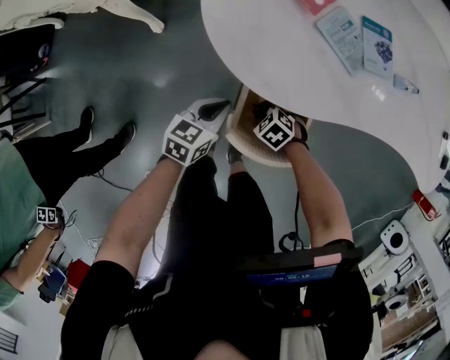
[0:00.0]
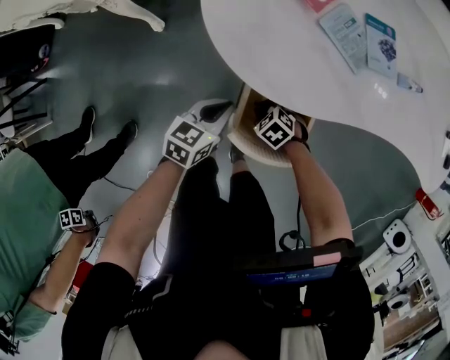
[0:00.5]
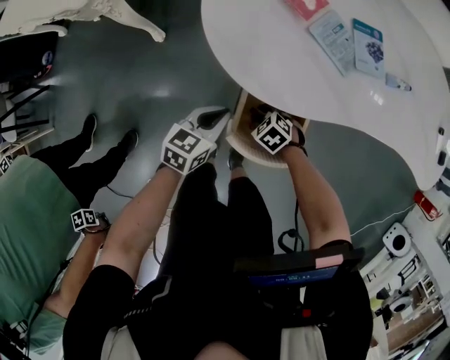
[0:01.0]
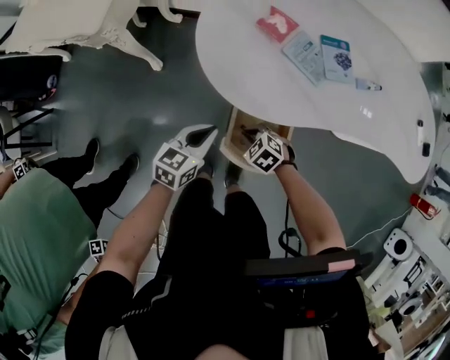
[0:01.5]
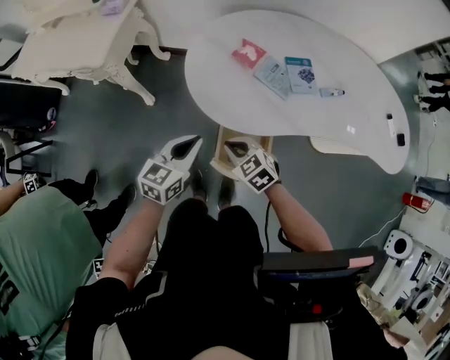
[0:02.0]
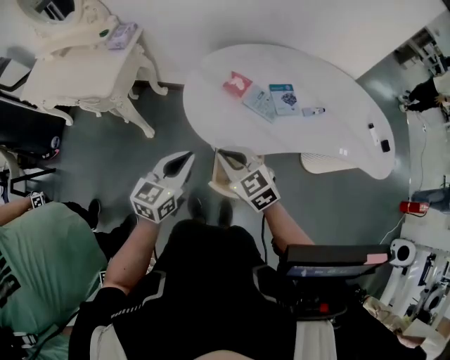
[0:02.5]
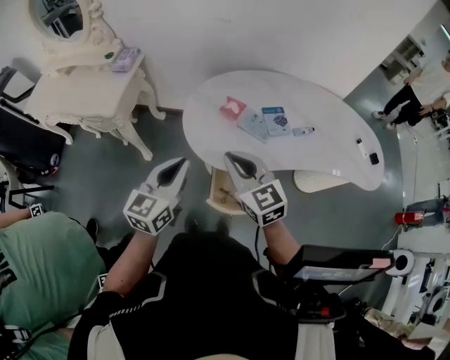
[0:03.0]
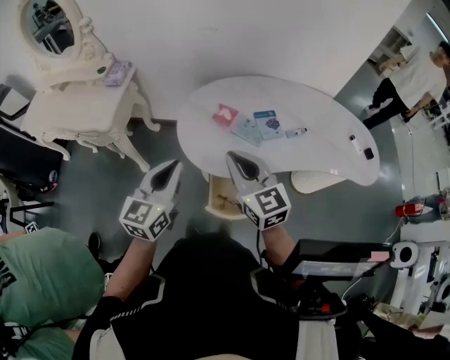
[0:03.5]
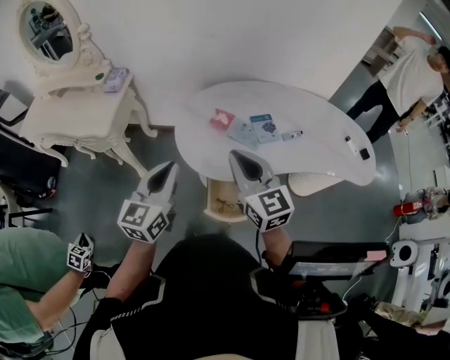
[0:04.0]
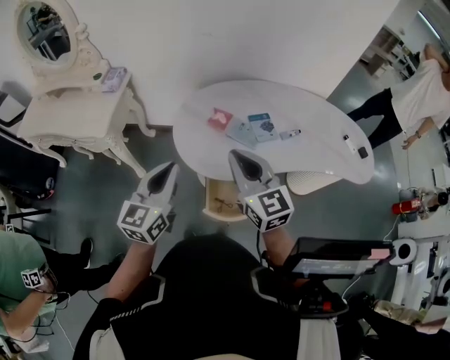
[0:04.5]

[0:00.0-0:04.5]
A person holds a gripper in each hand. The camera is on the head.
0:00.0 to 0:02.0: The grippers both shift upward by approximately 20 cm. The right gripper swivels some 30 degrees, and opens, then closes once more.
0:02.0 to 0:04.5: The left gripper travels upward by about 20 cm, and rotates roughly 20 degrees. The right gripper is displaced upward by some 30 cm, and angles its fingers upward, by some 40 degrees.

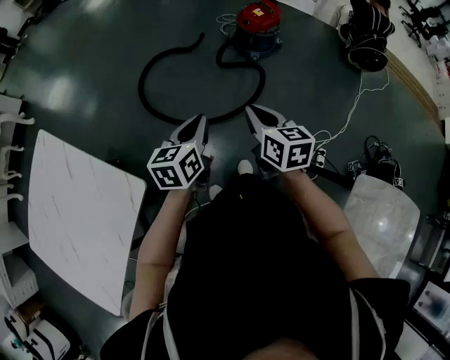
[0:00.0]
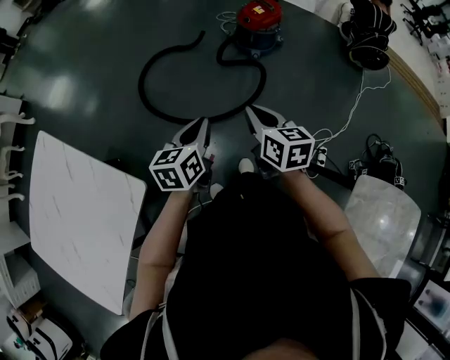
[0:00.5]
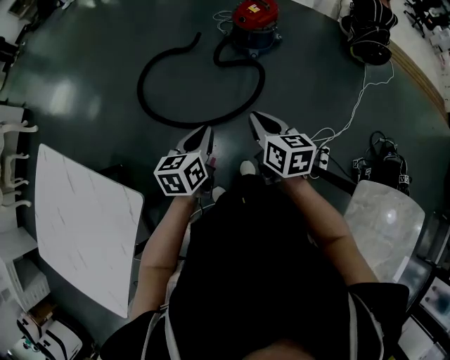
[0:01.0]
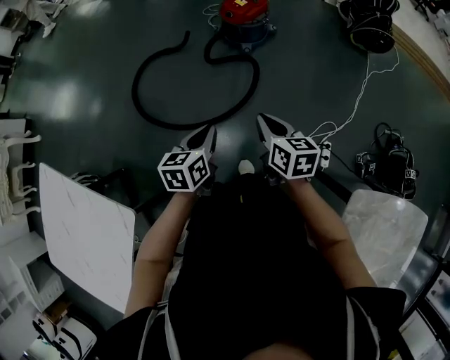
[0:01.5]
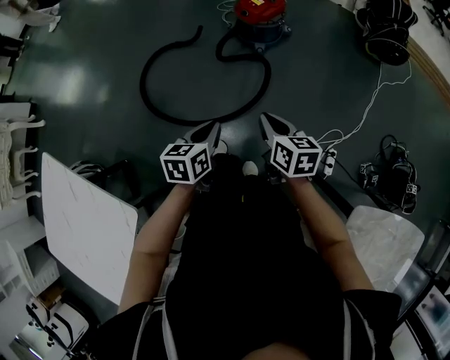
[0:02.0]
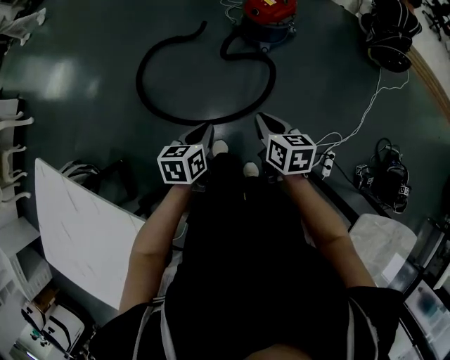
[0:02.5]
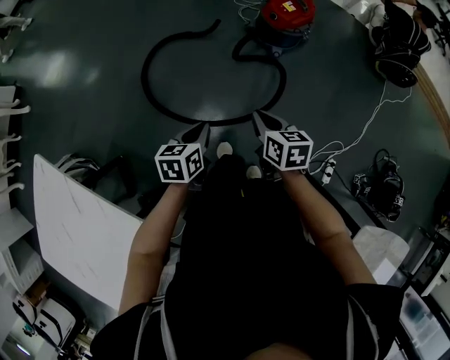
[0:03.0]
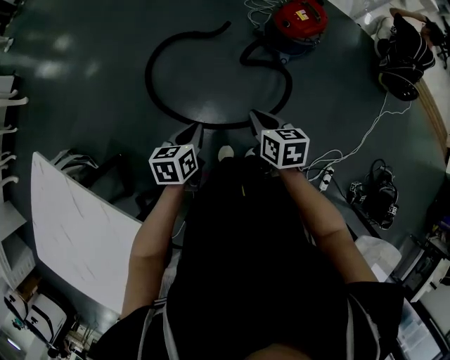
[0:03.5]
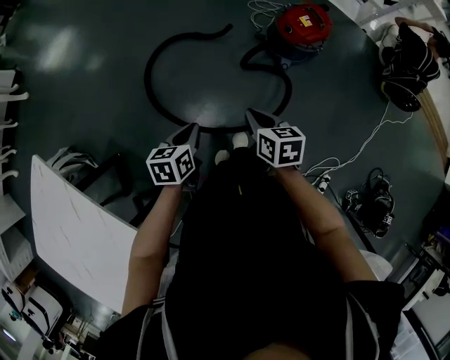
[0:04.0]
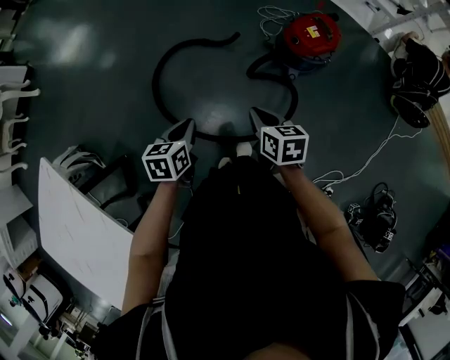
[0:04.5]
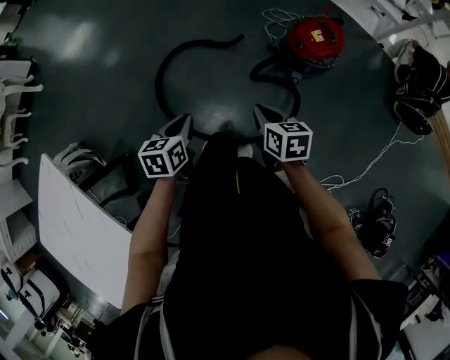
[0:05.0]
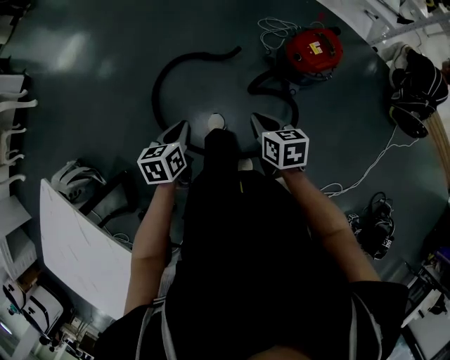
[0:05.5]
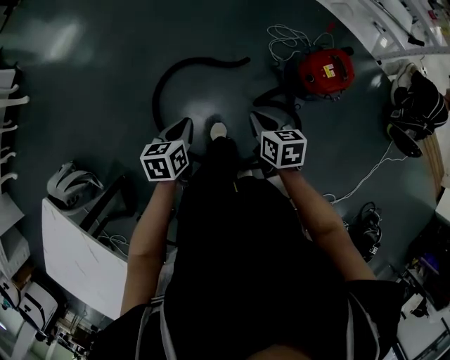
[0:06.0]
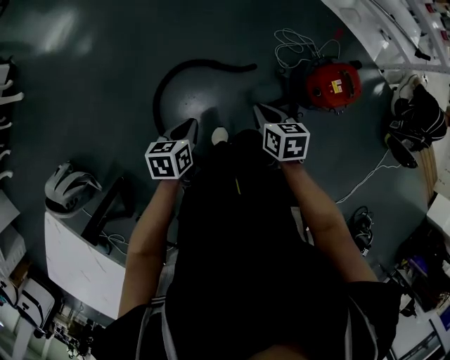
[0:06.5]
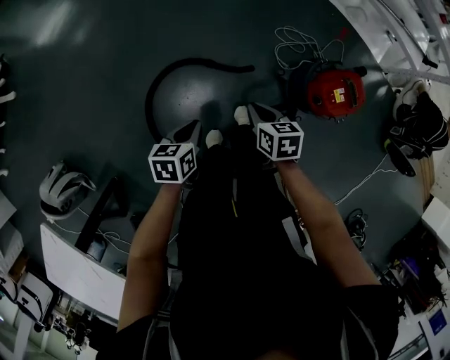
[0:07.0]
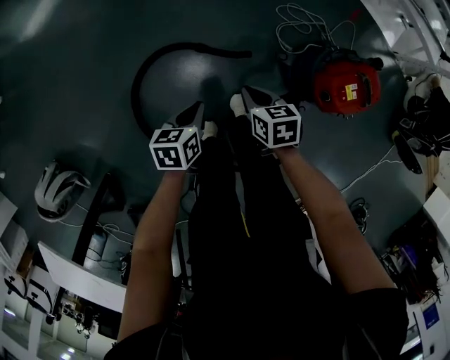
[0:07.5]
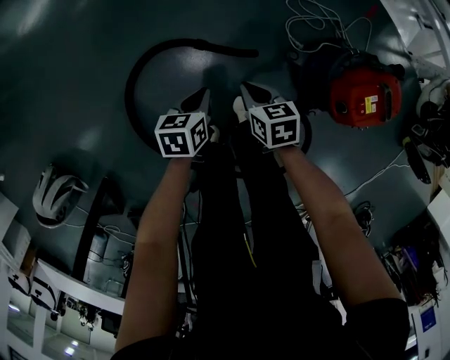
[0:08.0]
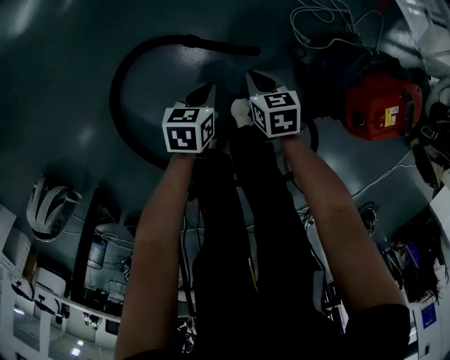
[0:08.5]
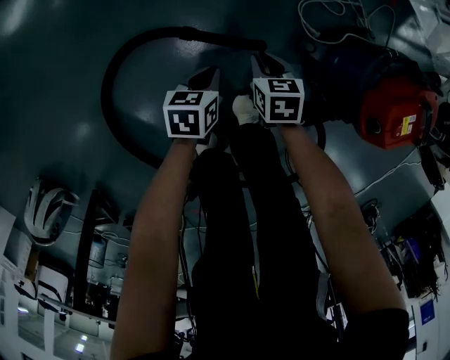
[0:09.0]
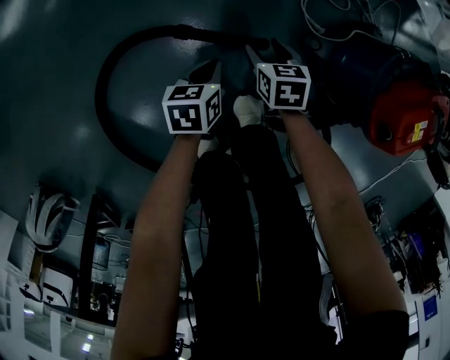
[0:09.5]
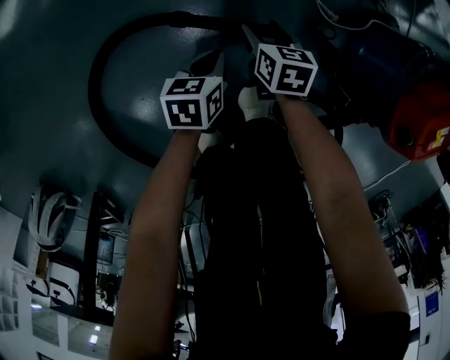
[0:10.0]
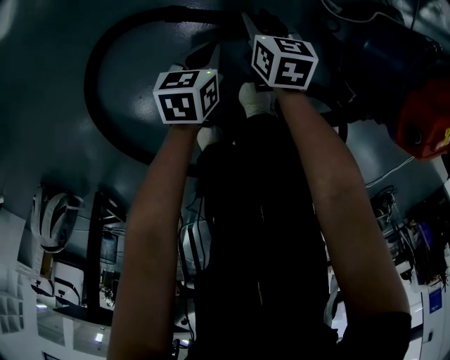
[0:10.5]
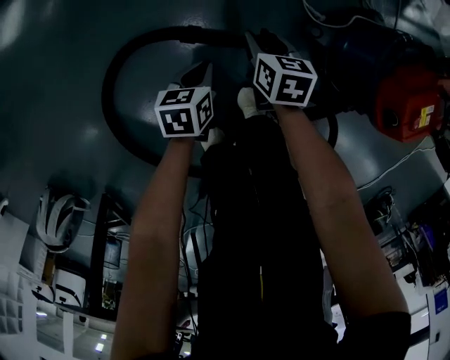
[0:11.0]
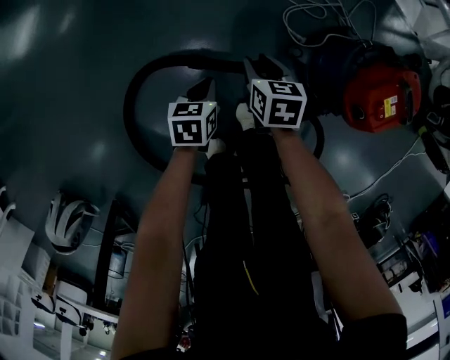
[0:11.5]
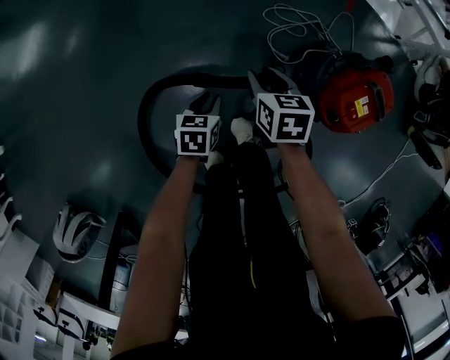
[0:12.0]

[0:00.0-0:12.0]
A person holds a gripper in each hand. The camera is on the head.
0:00.0 to 0:02.0: The grippers both shift to the right, forward and downward by roughly 15 cm.
0:02.0 to 0:04.0: The two grippers go some 25 cm to the left and forward.
0:04.0 to 0:06.0: Both grippers move forward, approximately 25 cm.
0:06.0 to 0:08.0: The two grippers go roughly 35 cm downward and forward.
0:08.0 to 0:10.0: The grippers both shift downward by about 25 cm. The right gripper opens its fingers.
0:10.0 to 0:12.0: The grippers both shift upward by about 25 cm.

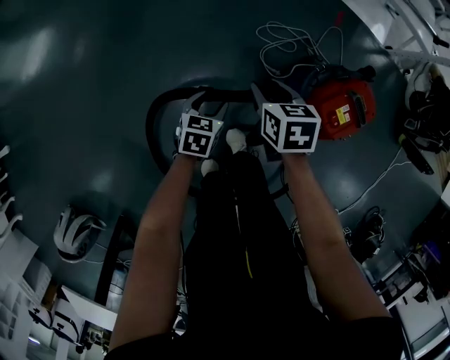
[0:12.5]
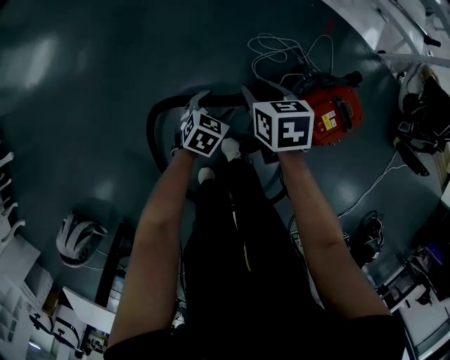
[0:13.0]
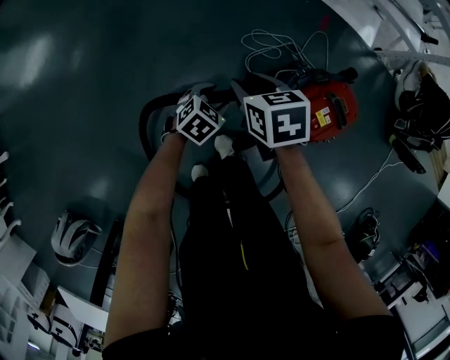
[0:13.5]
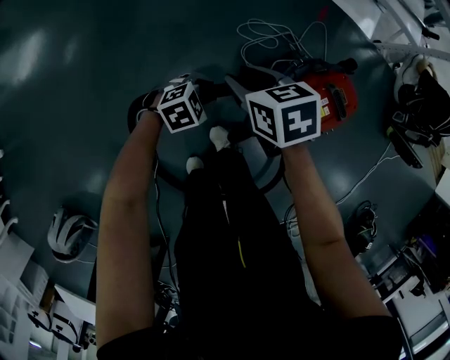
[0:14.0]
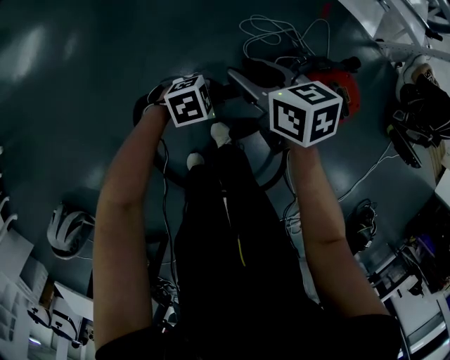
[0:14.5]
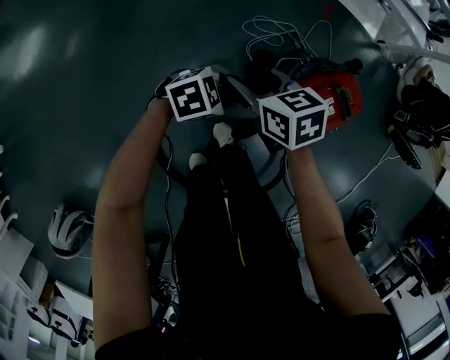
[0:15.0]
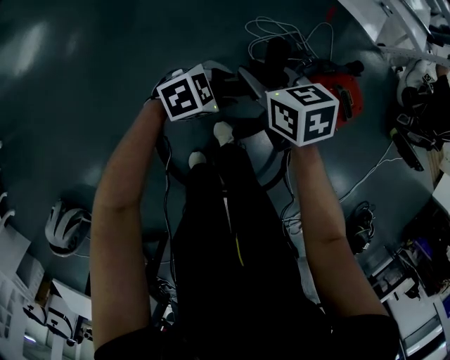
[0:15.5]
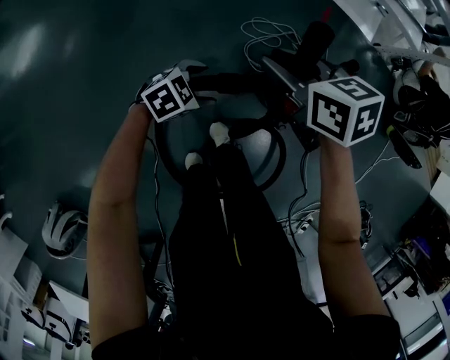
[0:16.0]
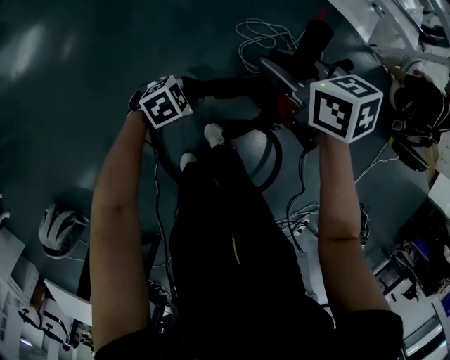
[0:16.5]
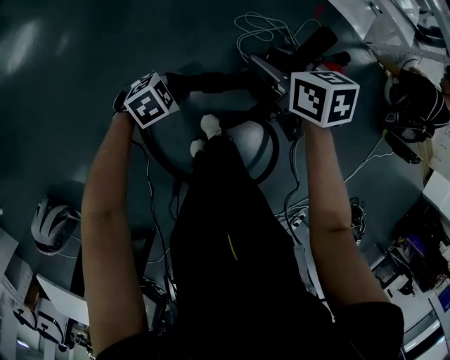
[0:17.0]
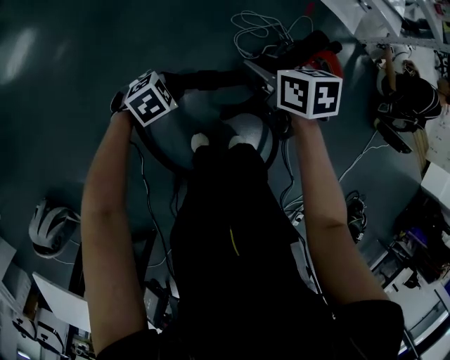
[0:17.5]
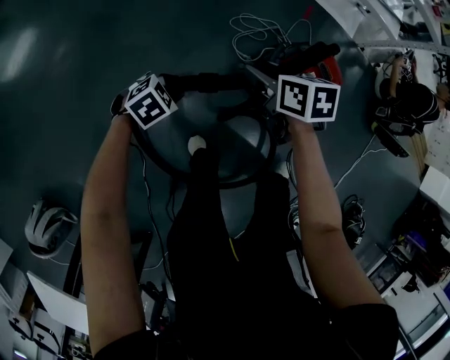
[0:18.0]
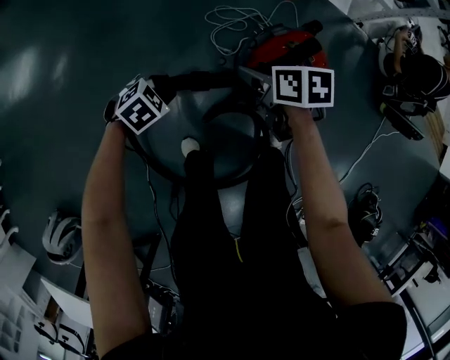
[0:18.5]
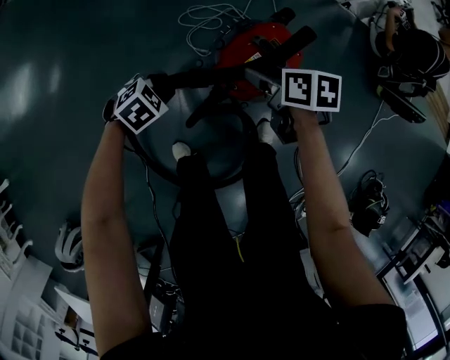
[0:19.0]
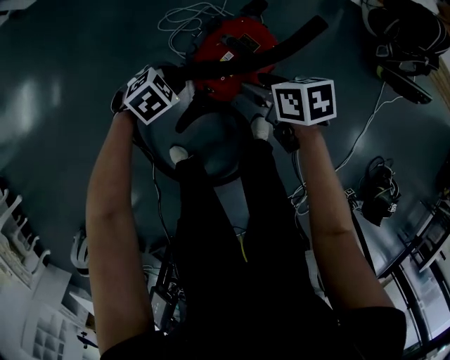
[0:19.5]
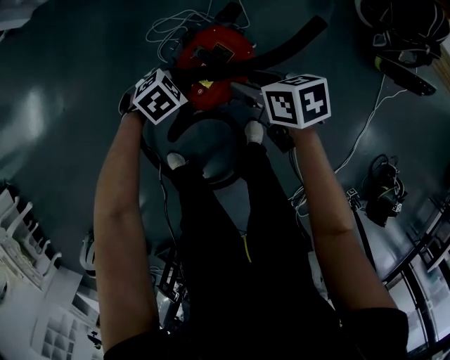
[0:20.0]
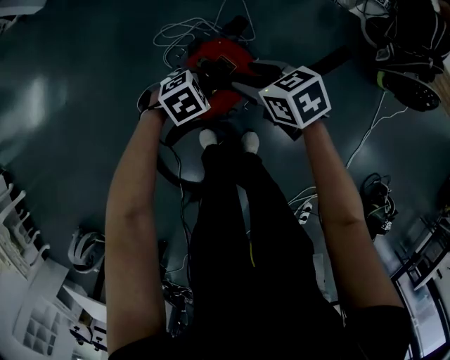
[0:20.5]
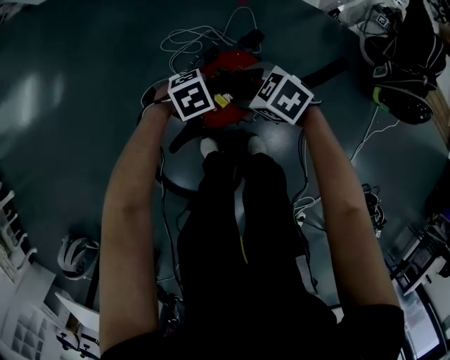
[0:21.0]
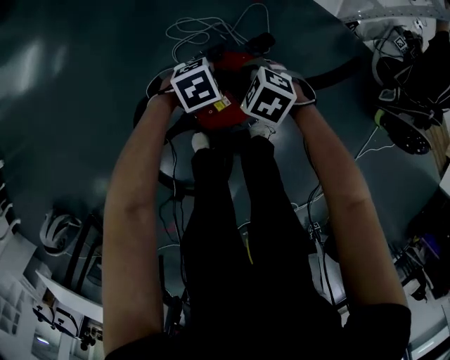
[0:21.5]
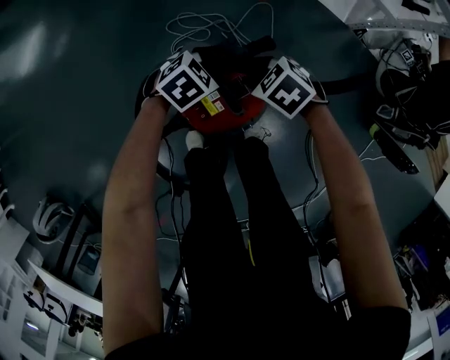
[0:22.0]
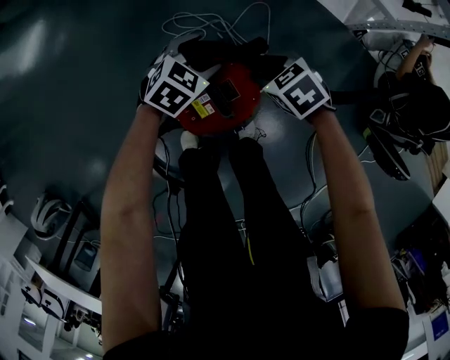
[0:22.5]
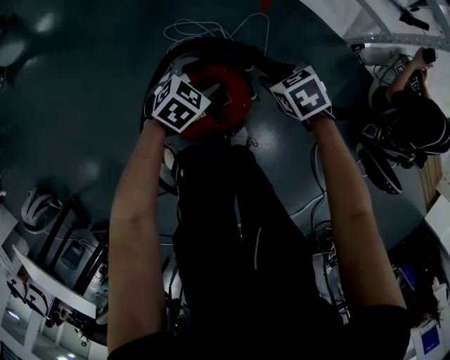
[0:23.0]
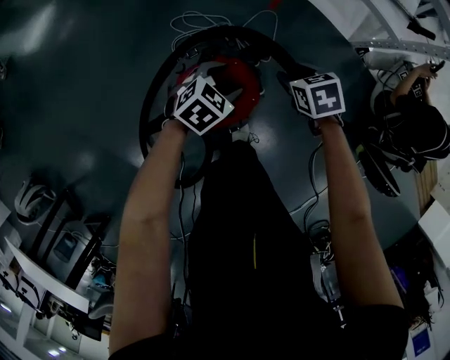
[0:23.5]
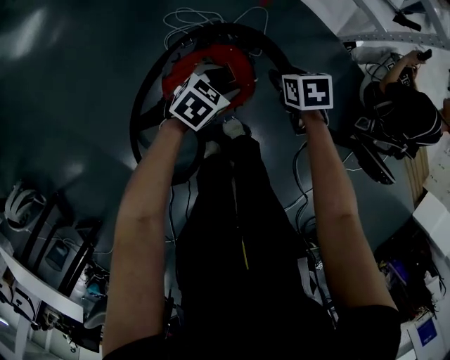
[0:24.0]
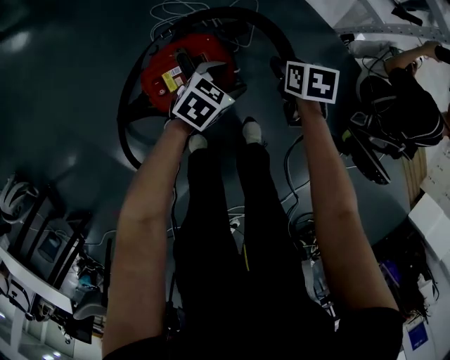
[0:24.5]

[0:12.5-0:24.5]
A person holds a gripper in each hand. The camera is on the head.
0:12.5 to 0:14.5: The left gripper moves about 10 cm, and swivels about 60 degrees, while the right gripper heads upward, covering about 10 cm, and rotates approximately 20 degrees.
0:14.5 to 0:16.5: The right gripper shifts by about 5 cm; the left gripper opens and closes again.
0:16.5 to 0:18.5: The right gripper shifts by roughly 20 cm, rotates some 20 degrees, and opens its fingers.
0:18.5 to 0:20.5: The left gripper ends up approximately 40 cm from where it was; the right gripper moves roughly 30 cm, and changes its angle by roughly 20 degrees.
0:20.5 to 0:22.5: The right gripper moves approximately 15 cm, and turns by approximately 30 degrees, while the left gripper ends up approximately 20 cm from where it was, rotates about 40 degrees, and opens.
0:22.5 to 0:24.5: The left gripper heads to the right and backward, covering approximately 20 cm, and rotates roughly 20 degrees; the right gripper shifts about 15 cm to the right, and changes its angle by about 40 degrees.
